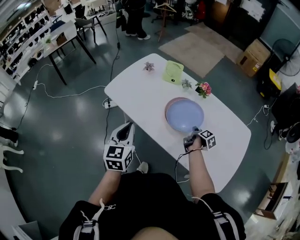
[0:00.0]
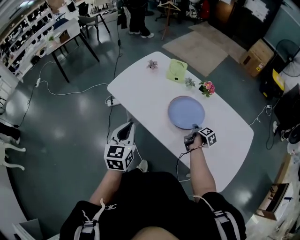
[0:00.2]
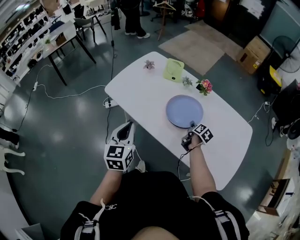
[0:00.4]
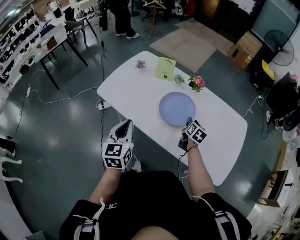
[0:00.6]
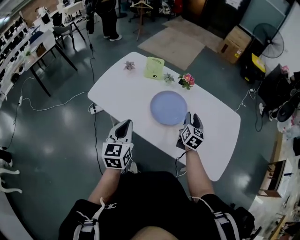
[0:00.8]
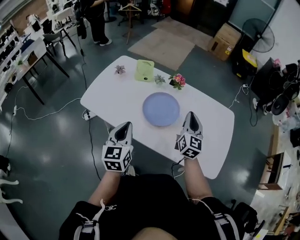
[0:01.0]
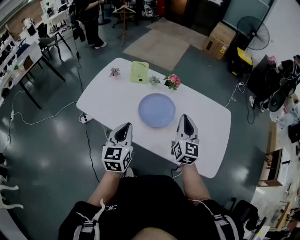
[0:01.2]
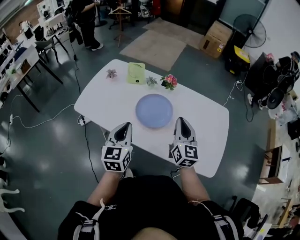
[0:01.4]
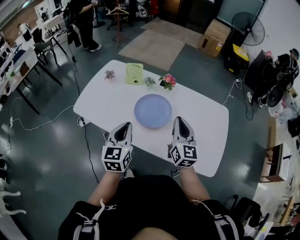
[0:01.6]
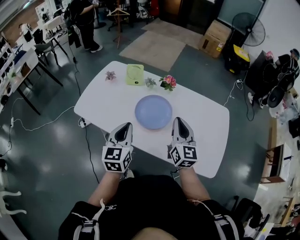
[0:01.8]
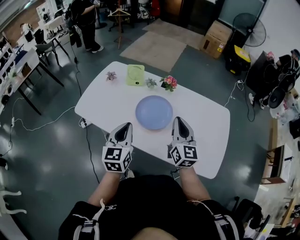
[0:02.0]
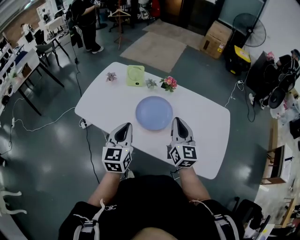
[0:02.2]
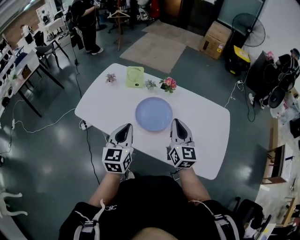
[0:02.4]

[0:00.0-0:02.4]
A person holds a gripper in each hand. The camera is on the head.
0:00.0 to 0:01.2: The right gripper shifts approximately 25 cm upward, and rolls counterclockwise, seen from behind, by approximately 60 degrees; the left gripper goes about 10 cm to the right.
0:01.2 to 0:02.4: The grippers make only small movements.

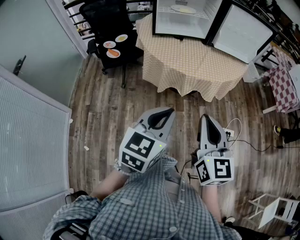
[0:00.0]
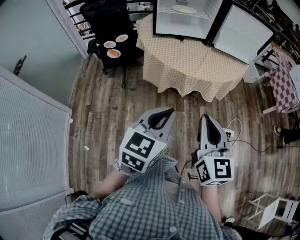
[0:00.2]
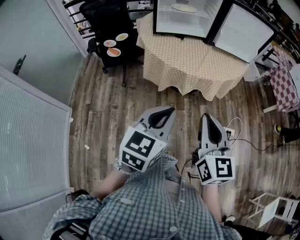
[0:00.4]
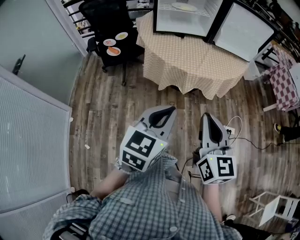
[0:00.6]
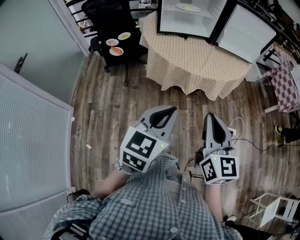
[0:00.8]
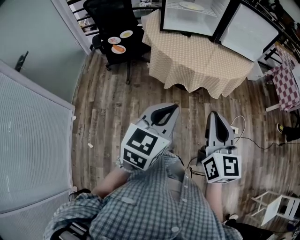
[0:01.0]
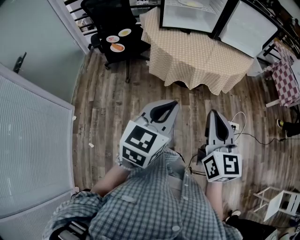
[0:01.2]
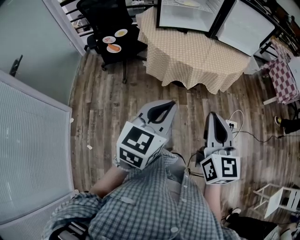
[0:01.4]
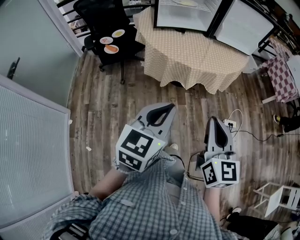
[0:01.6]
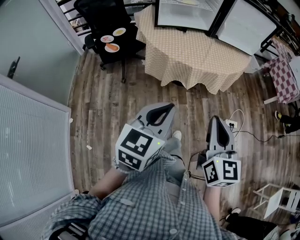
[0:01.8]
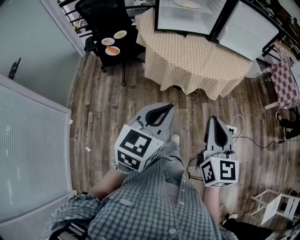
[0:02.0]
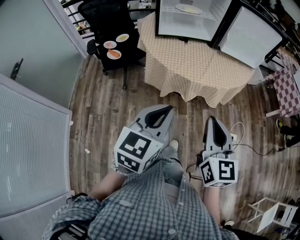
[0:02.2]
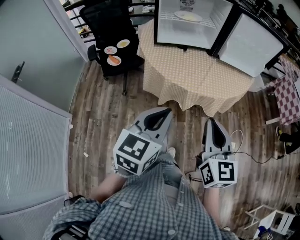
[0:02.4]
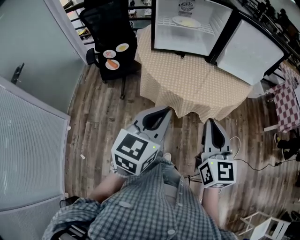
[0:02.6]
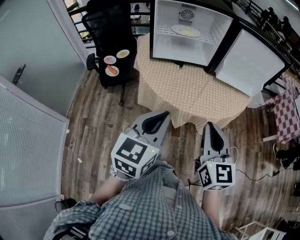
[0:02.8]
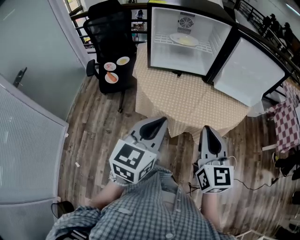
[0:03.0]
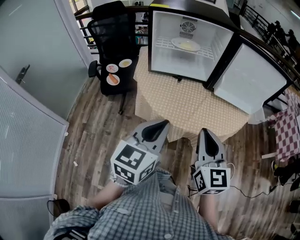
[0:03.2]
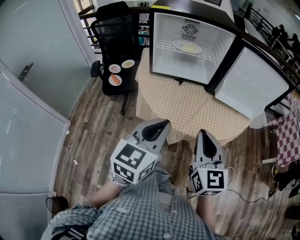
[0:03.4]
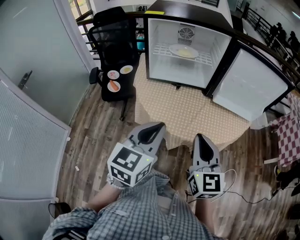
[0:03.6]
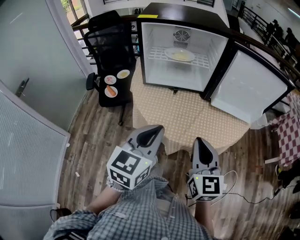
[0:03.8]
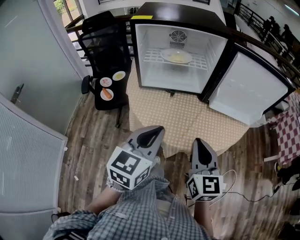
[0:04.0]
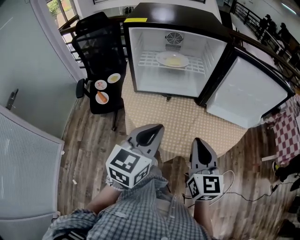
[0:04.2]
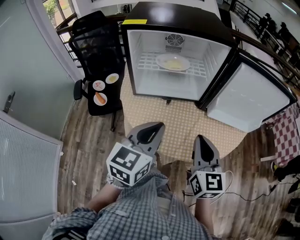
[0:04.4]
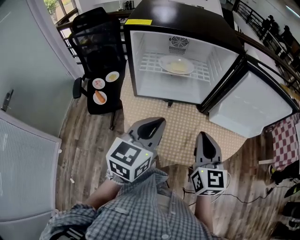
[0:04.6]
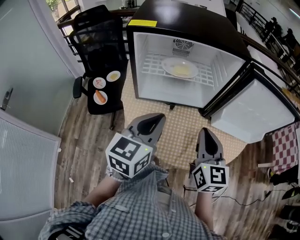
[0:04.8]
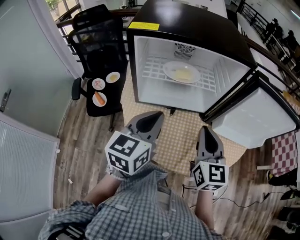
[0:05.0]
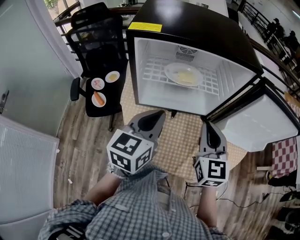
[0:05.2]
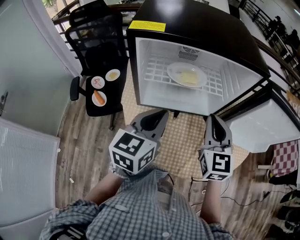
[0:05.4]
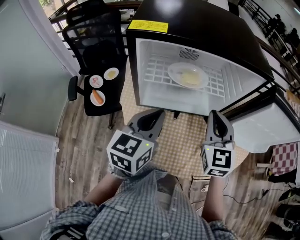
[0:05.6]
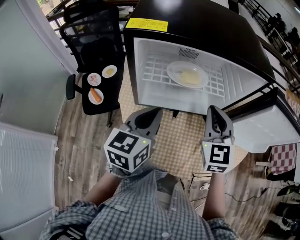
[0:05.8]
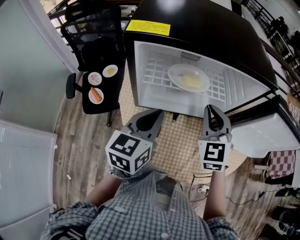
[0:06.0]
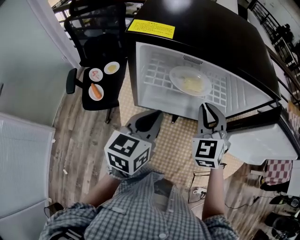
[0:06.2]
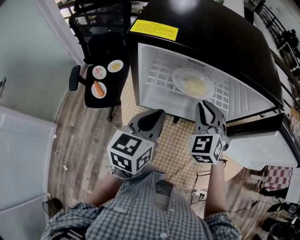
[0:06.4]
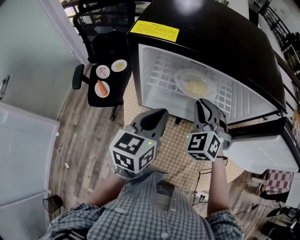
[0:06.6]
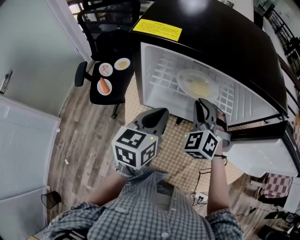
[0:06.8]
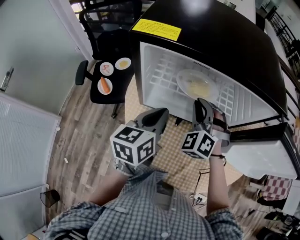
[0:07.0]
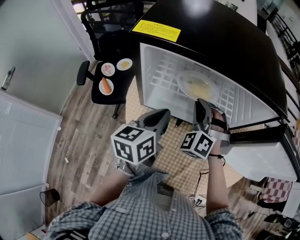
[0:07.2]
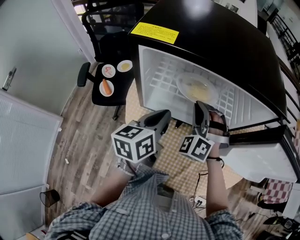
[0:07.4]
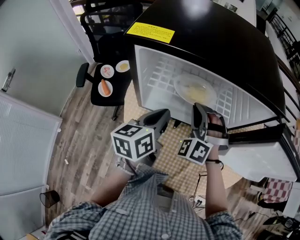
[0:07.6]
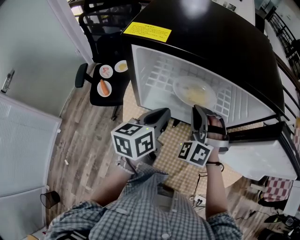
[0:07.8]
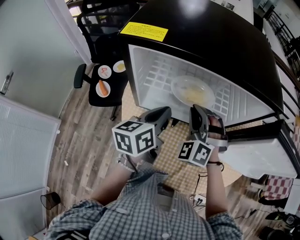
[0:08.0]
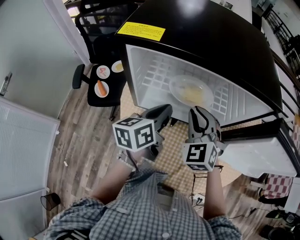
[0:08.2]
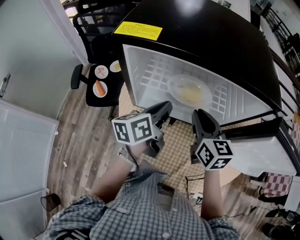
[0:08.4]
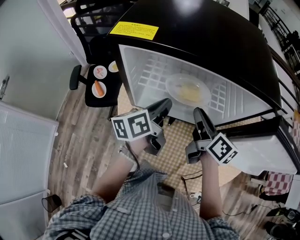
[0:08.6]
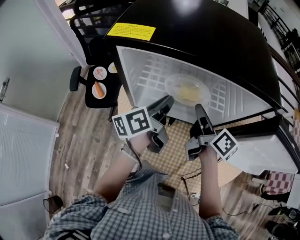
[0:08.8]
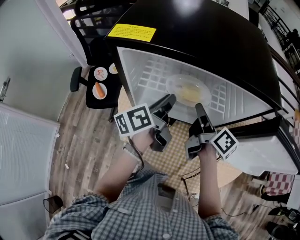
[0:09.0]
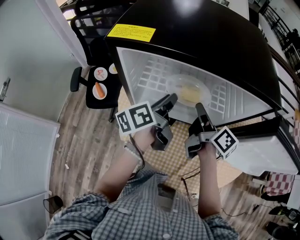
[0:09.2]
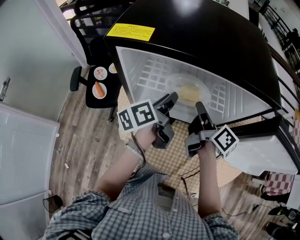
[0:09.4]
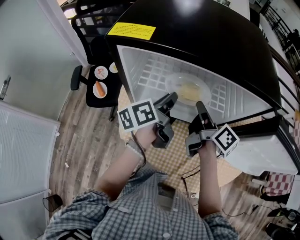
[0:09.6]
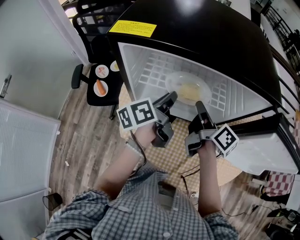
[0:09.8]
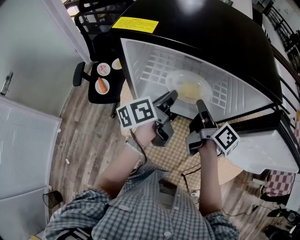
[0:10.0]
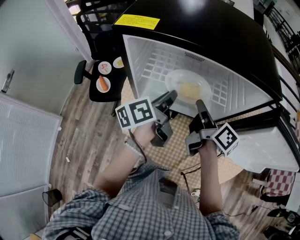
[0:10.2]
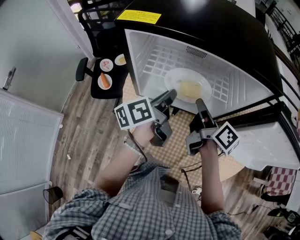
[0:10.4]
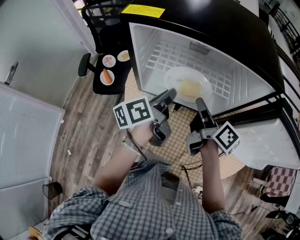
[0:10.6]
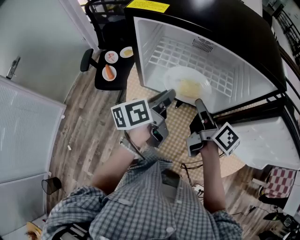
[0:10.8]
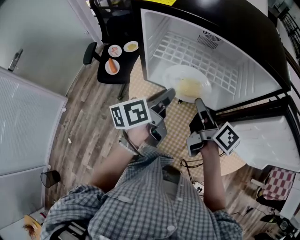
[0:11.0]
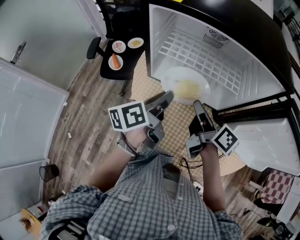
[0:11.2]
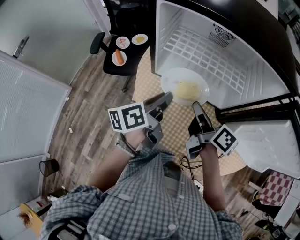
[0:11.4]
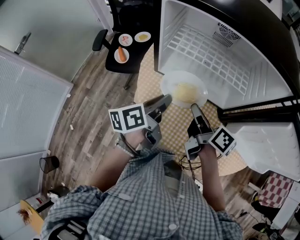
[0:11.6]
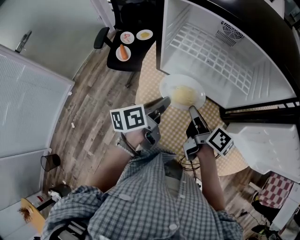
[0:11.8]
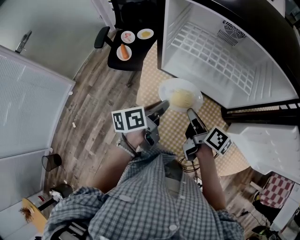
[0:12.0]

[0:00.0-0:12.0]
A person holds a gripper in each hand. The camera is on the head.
0:00.0 to 0:01.6: The left gripper is displaced to the left by roughly 5 cm.
0:01.6 to 0:03.0: The grippers both shift forward by about 25 cm.
0:03.0 to 0:04.4: The grippers both shift forward by roughly 20 cm.
0:04.4 to 0:06.0: The left gripper shifts approximately 20 cm forward and to the left. Meanwhile the right gripper is displaced forward by approximately 25 cm, and turns by about 40 degrees.
0:06.0 to 0:07.6: The right gripper travels to the left and downward by some 5 cm, and rotates around the line of its fingers by approximately 50 degrees, counterclockwise from behind, while the left gripper moves some 5 cm, and changes its angle by approximately 20 degrees.
0:07.6 to 0:09.0: The right gripper is displaced to the right by some 5 cm, and rotates around the line of its fingers by approximately 140 degrees, clockwise from behind. The left gripper heads forward, covering approximately 5 cm, and swivels about 30 degrees.
0:09.0 to 0:10.4: There are only small adjustments of the grippers.
0:10.4 to 0:12.0: The left gripper shifts roughly 15 cm backward, downward and to the left. Meanwhile the right gripper moves downward, backward and to the left, about 15 cm, and changes its angle by about 20 degrees.

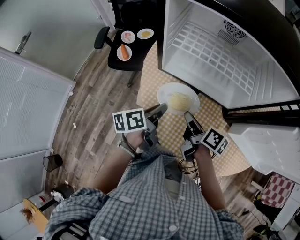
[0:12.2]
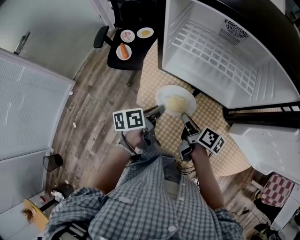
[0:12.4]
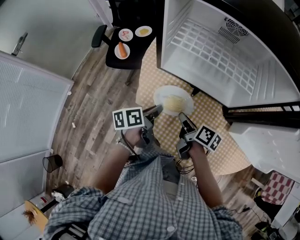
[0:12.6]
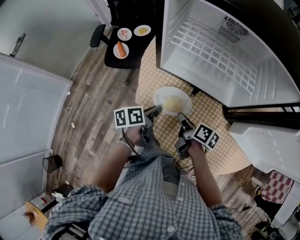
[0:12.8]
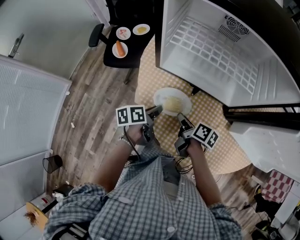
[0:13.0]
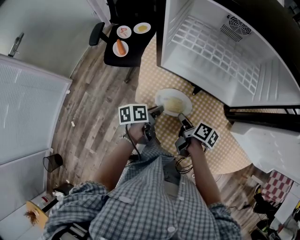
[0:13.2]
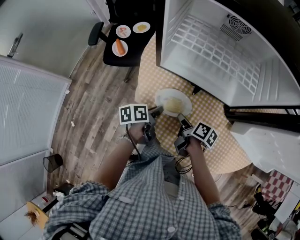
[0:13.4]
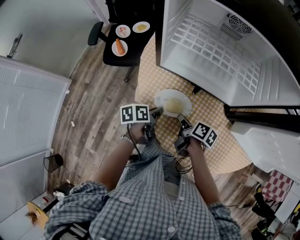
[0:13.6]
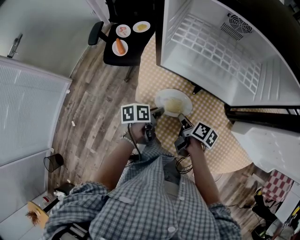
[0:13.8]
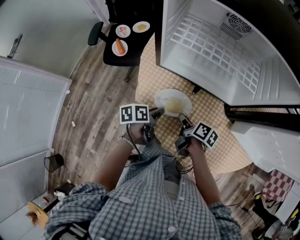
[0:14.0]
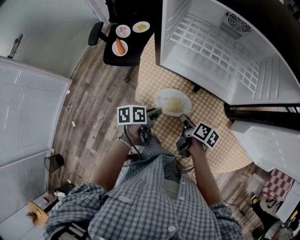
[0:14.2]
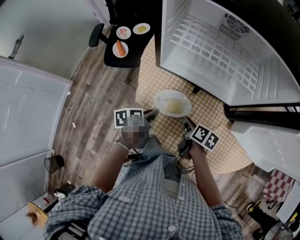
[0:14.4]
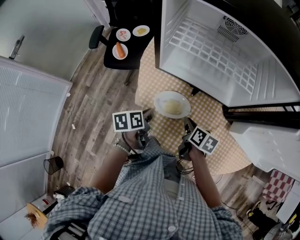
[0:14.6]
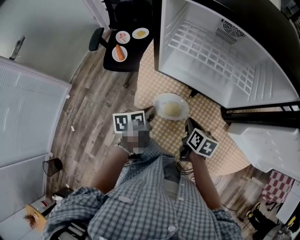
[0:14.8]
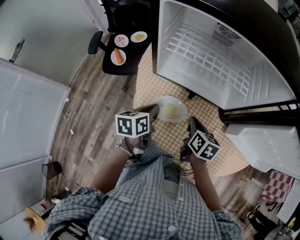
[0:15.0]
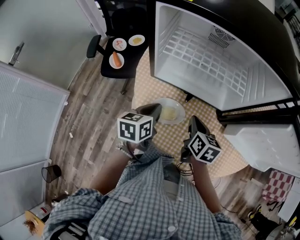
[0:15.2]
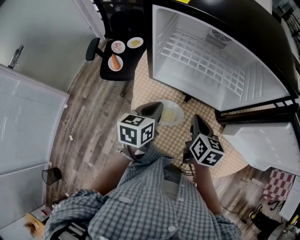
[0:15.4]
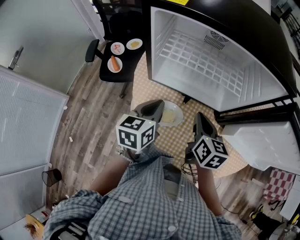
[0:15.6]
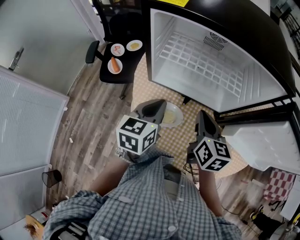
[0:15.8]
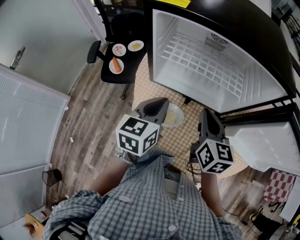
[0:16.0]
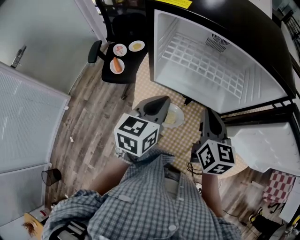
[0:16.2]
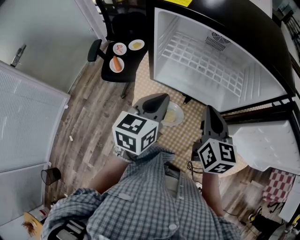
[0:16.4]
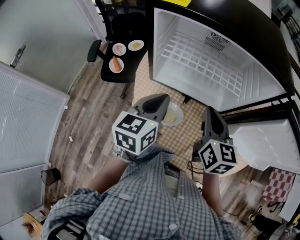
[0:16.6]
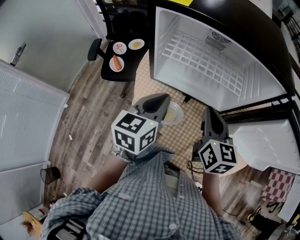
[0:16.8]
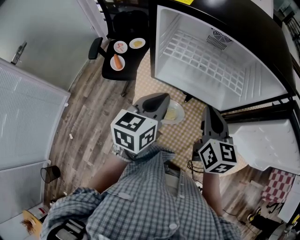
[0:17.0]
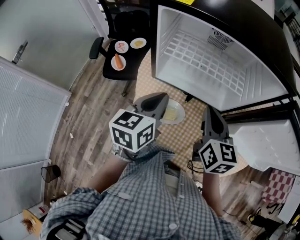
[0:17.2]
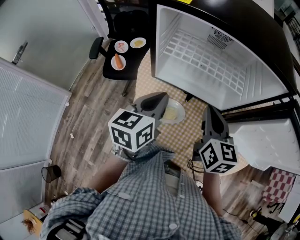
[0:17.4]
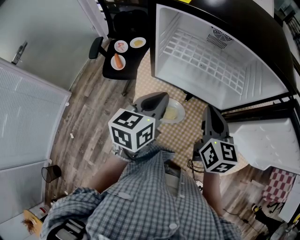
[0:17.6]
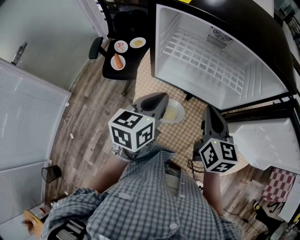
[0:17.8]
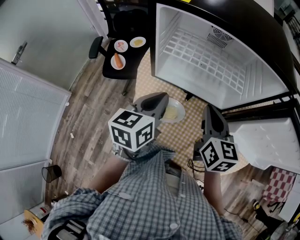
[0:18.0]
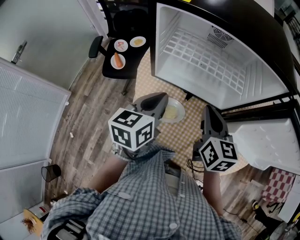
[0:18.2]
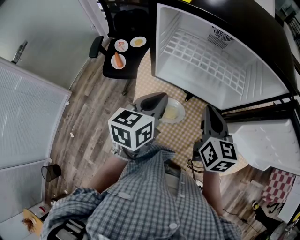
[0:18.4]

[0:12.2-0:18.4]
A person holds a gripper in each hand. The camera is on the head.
0:12.2 to 0:13.8: The two grippers go about 10 cm downward.
0:13.8 to 0:15.4: The two grippers go roughly 15 cm upward. The left gripper turns by some 40 degrees. The right gripper rotates roughly 40 degrees.
0:15.4 to 0:16.8: The two grippers go approximately 10 cm upward.
0:16.8 to 0:18.4: The grippers move only a little.

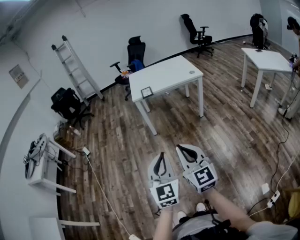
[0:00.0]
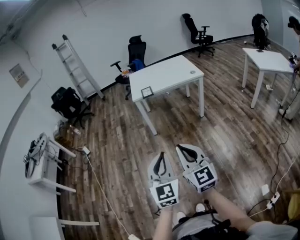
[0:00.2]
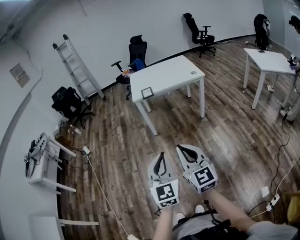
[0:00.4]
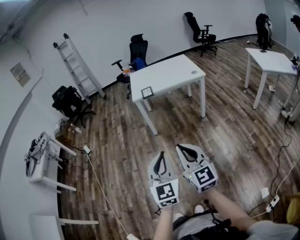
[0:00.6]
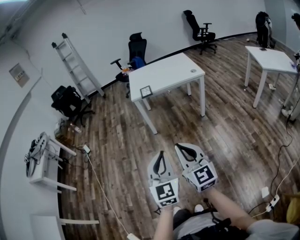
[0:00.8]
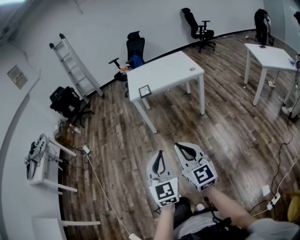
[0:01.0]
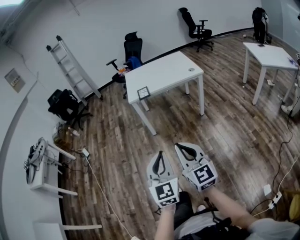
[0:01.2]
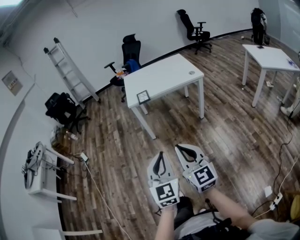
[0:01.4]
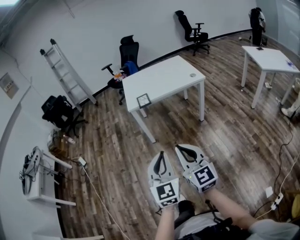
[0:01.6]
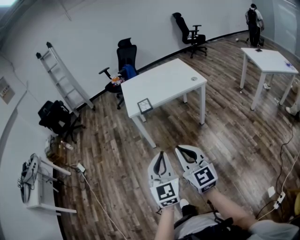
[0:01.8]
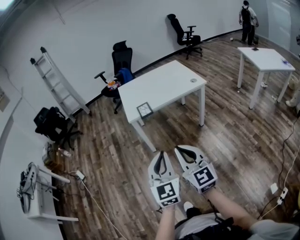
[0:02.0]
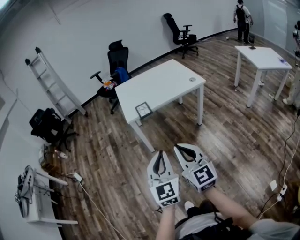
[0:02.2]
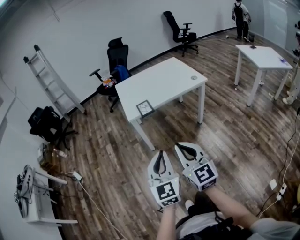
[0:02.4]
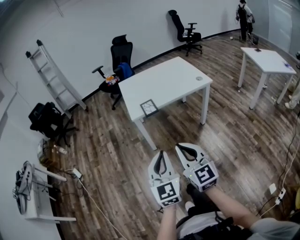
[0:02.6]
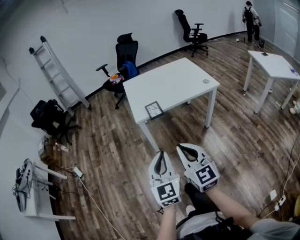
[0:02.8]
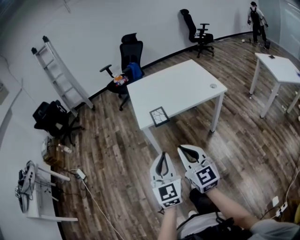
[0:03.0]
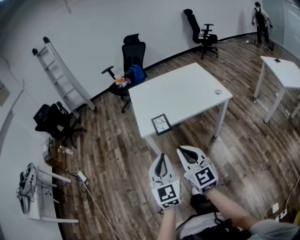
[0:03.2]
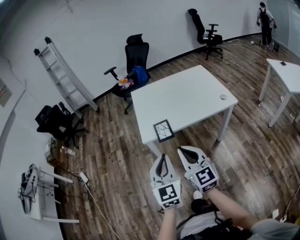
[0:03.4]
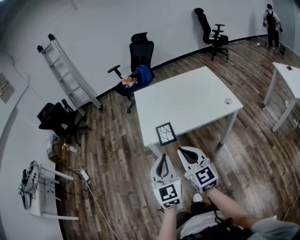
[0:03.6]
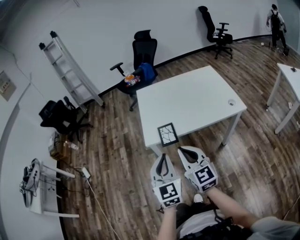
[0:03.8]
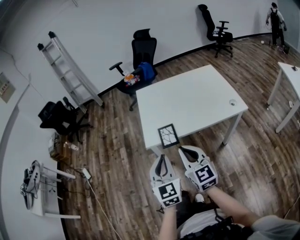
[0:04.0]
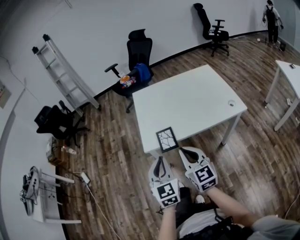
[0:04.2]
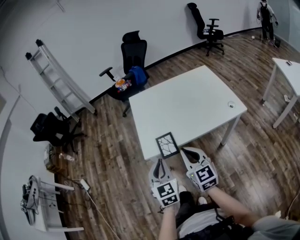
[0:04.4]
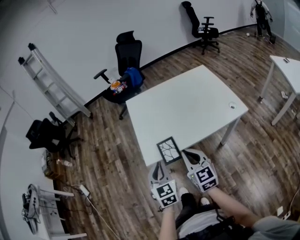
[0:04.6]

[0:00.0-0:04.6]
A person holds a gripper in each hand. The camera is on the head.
0:00.0 to 0:01.6: Both grippers move forward, about 20 cm.
0:01.6 to 0:03.0: The grippers both shift forward by roughly 30 cm.
0:03.0 to 0:04.6: Both grippers move forward, approximately 30 cm. The left gripper turns by approximately 20 degrees.
